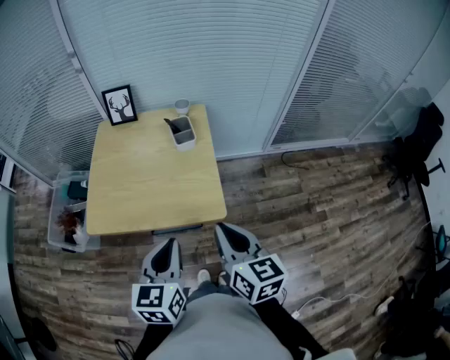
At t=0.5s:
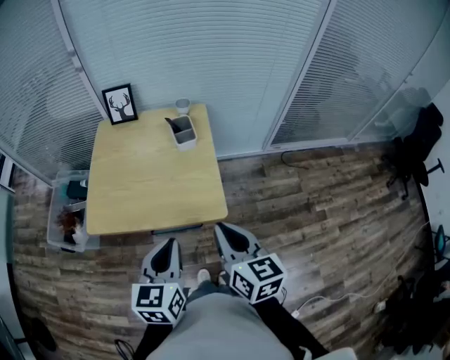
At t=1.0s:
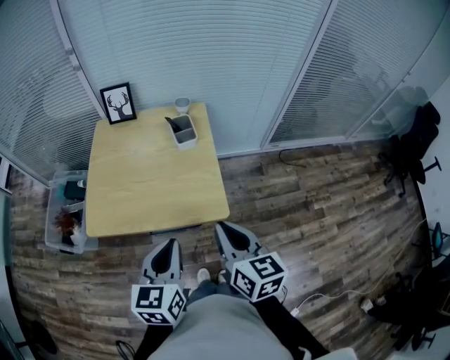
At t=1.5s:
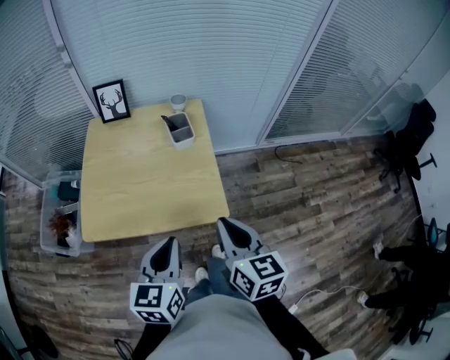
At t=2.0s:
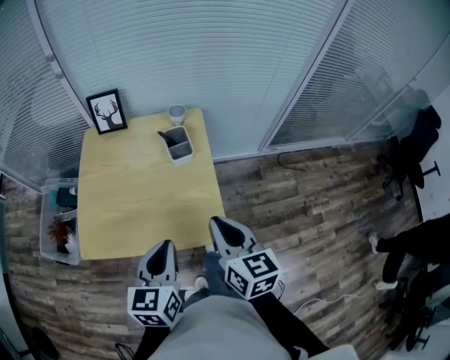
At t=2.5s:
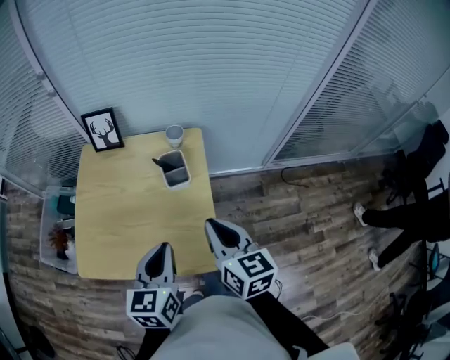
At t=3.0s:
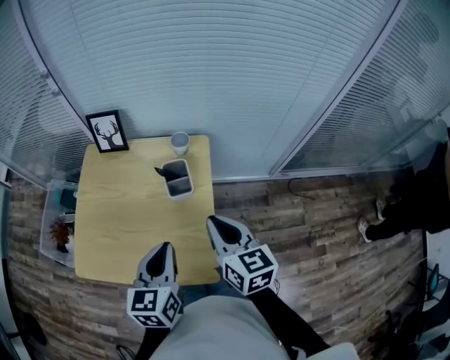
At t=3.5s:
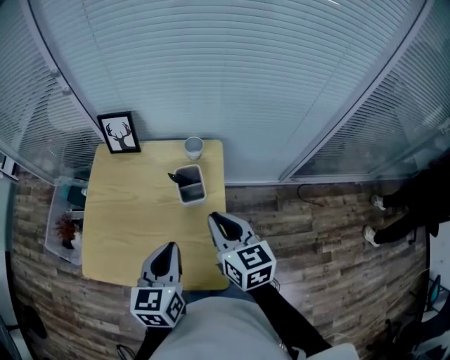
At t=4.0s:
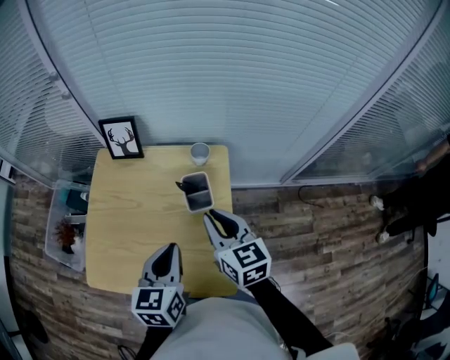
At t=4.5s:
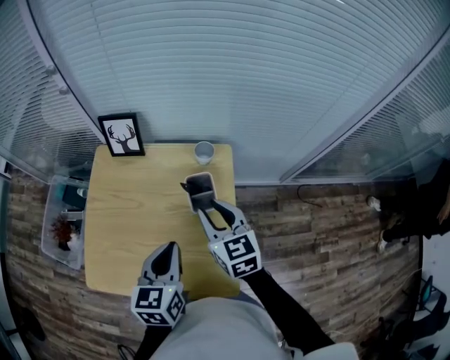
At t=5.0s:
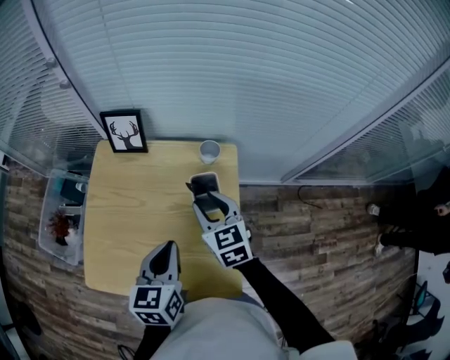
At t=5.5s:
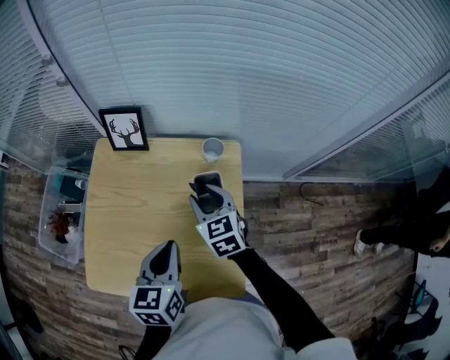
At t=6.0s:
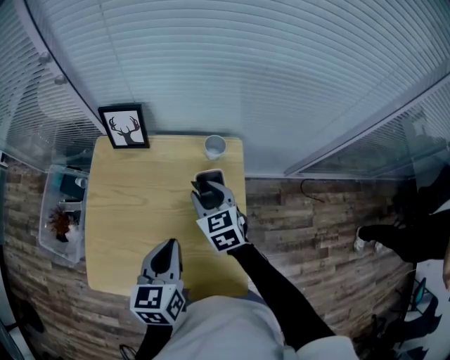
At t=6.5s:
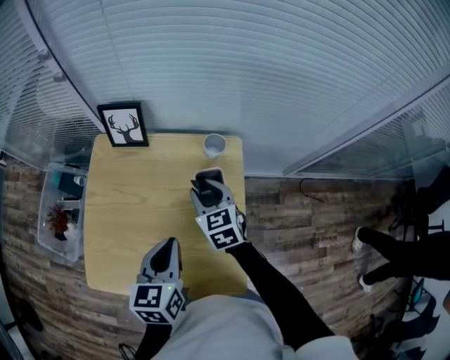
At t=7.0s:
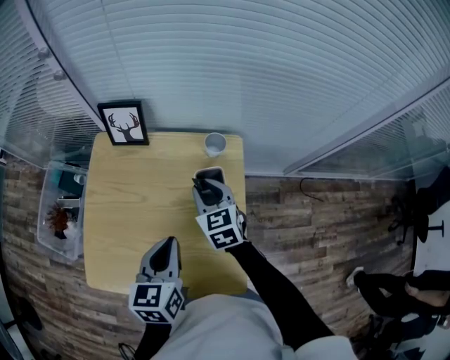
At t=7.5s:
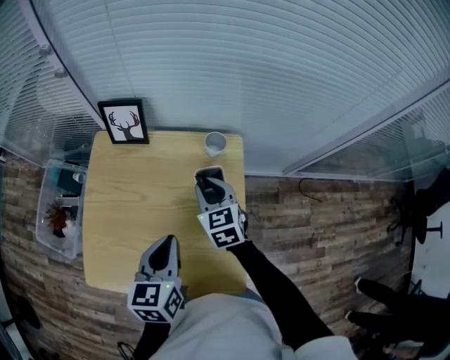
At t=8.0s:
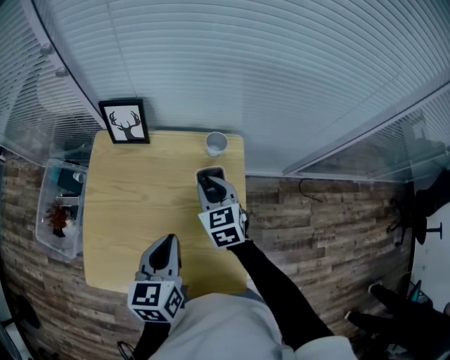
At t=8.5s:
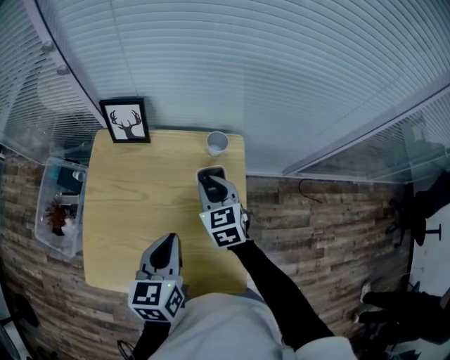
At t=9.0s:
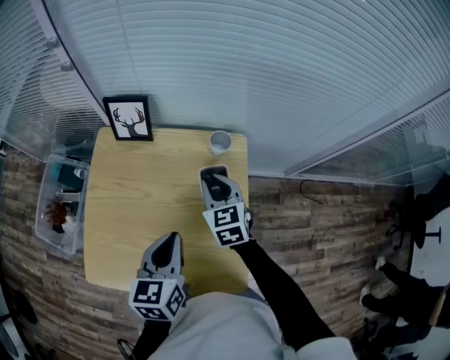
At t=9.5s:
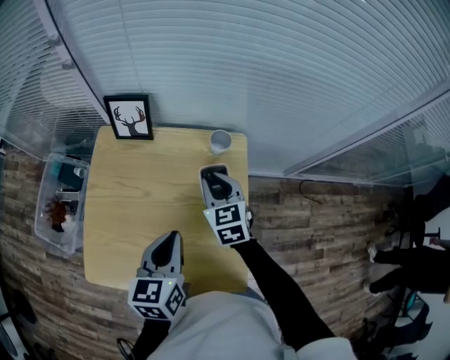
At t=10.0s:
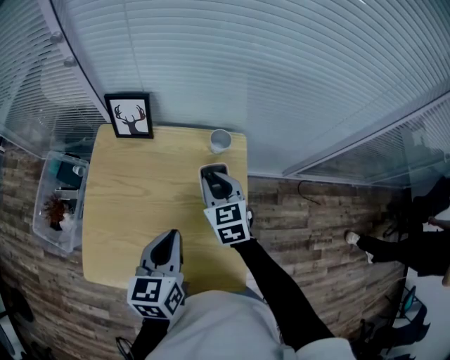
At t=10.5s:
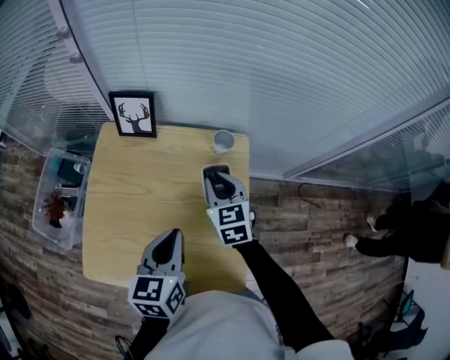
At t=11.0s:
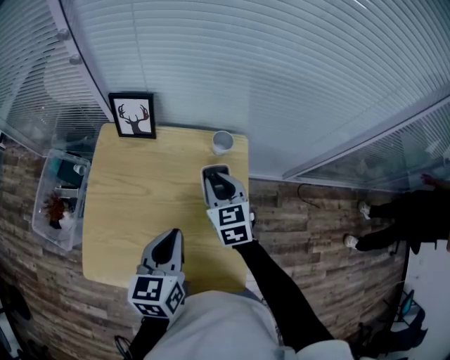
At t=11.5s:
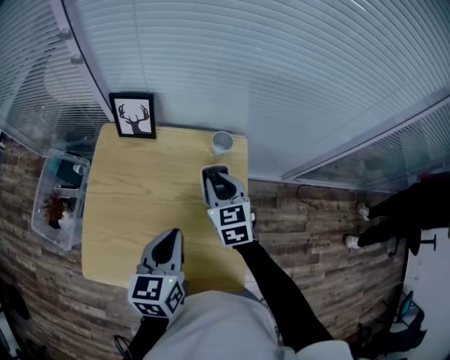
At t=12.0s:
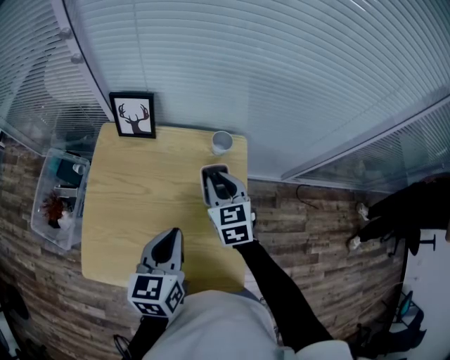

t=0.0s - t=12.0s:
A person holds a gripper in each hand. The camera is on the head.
t=0.0s - t=2.0s: The grippers both shift forward by about 10 cm.
t=2.0s - t=4.0s: The grippers both shift forward by roughly 20 cm.
t=4.0s - t=6.0s: The right gripper shifts about 15 cm forward, downward and to the left, changes its angle by some 20 degrees, and opens its fingers; the left gripper moves forward, approximately 5 cm.
t=6.0s - t=8.0s: The grippers stay close to where they were, moving slightly.
t=8.0s - t=10.0s: Both grippers stay about where they are.
t=10.0s - t=12.0s: Both grippers stay about where they are.

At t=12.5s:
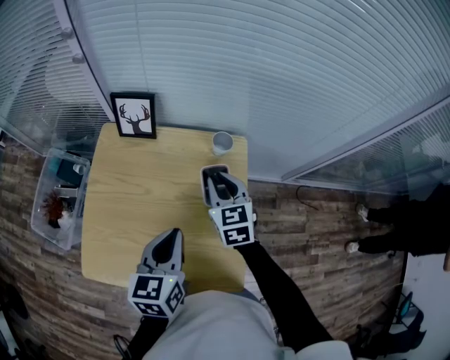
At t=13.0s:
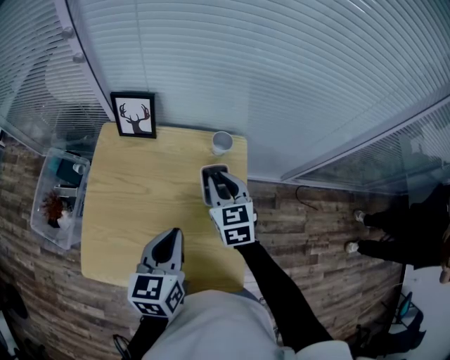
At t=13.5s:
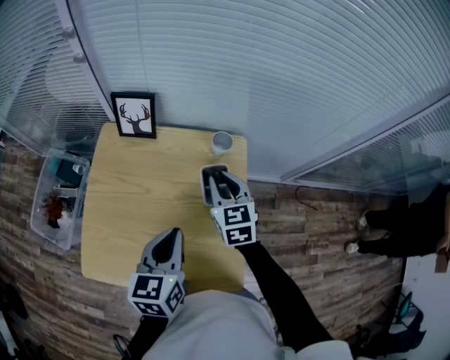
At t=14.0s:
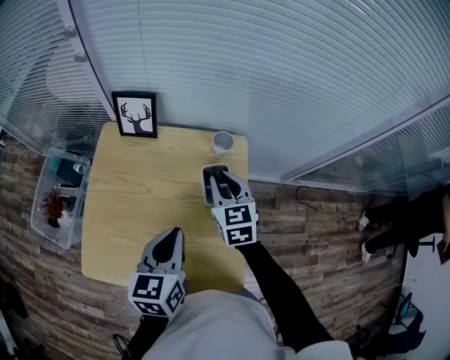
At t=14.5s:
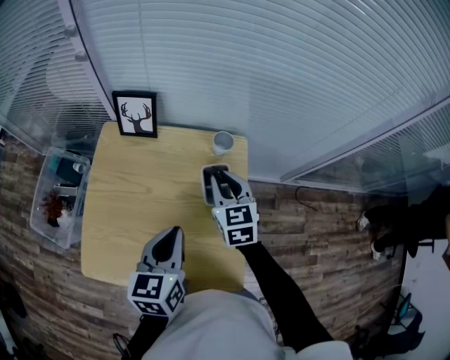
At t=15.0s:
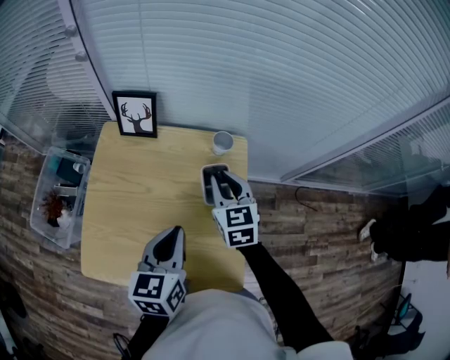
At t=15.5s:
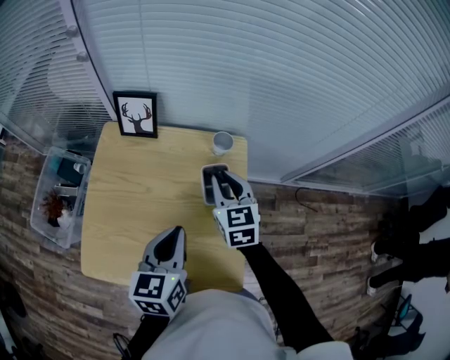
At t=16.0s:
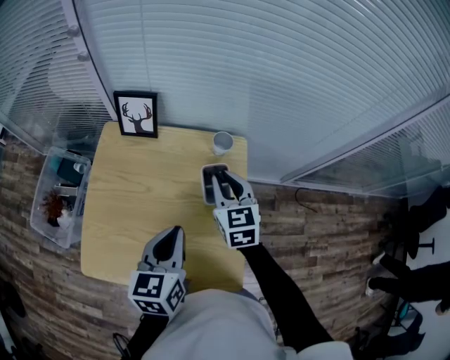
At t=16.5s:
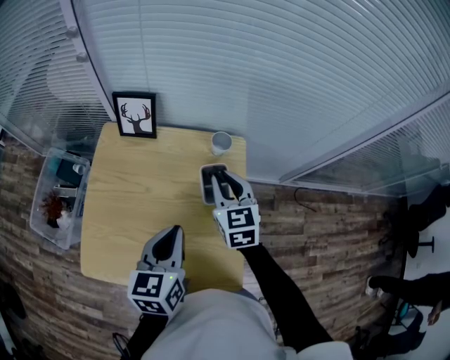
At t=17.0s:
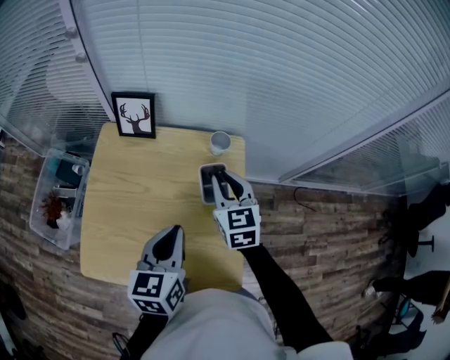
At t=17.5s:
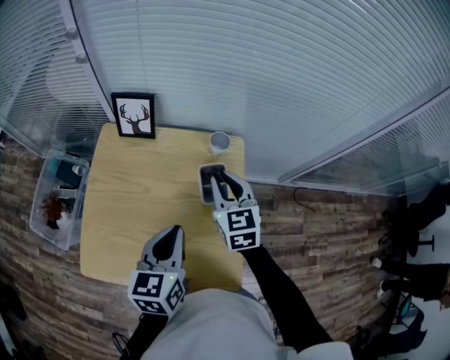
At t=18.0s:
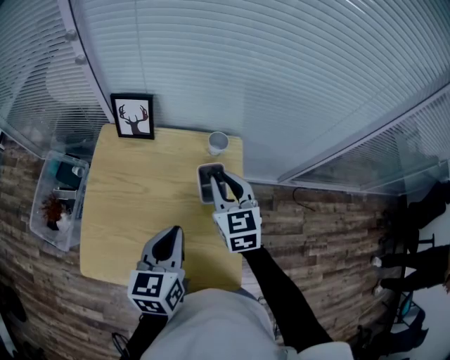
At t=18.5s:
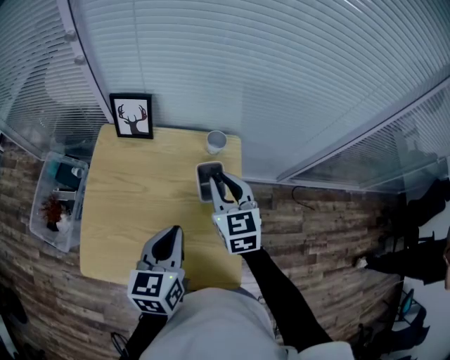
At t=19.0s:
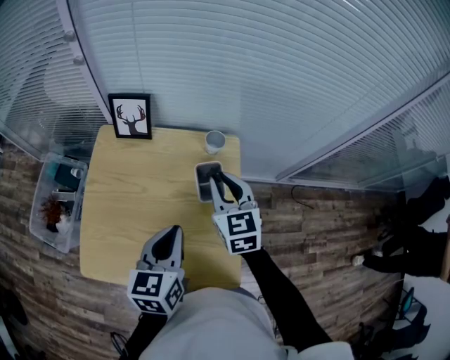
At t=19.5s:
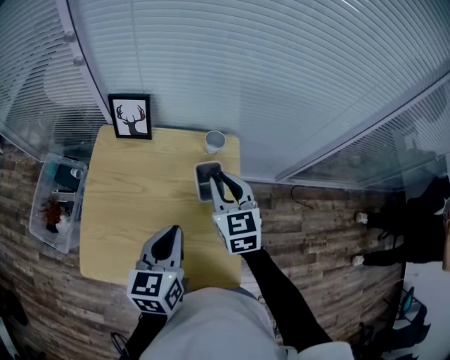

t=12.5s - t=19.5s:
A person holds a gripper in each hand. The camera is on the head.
t=12.5s - t=14.5s: The two grippers keep their place.
t=14.5s - t=16.0s: Neither gripper changes place.
t=16.0s - t=19.5s: There are only small adjustments of the grippers.

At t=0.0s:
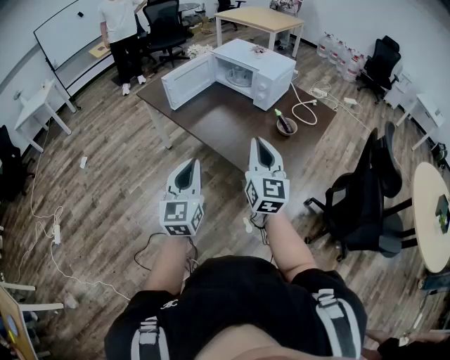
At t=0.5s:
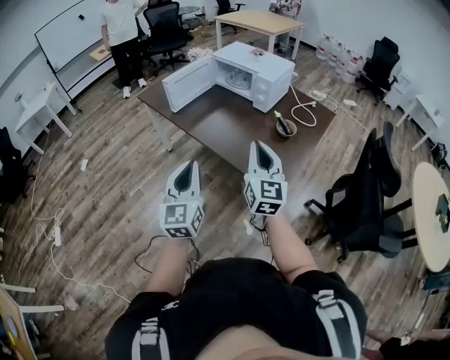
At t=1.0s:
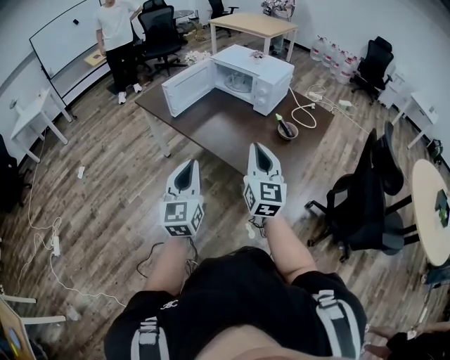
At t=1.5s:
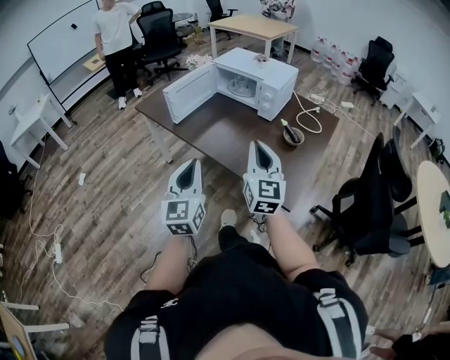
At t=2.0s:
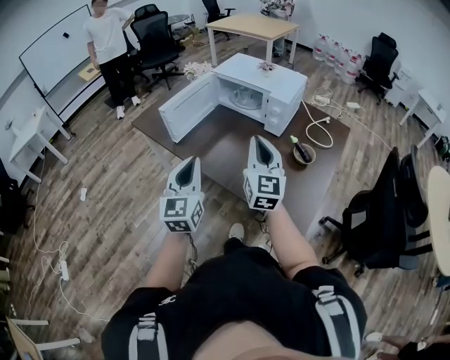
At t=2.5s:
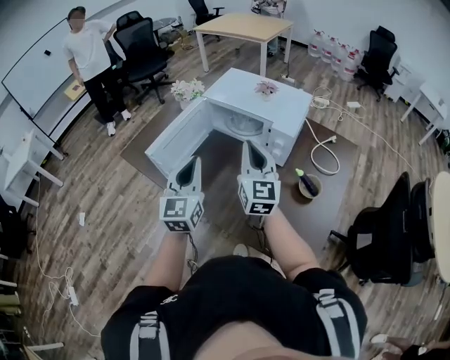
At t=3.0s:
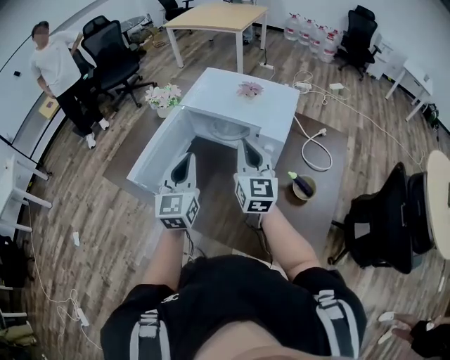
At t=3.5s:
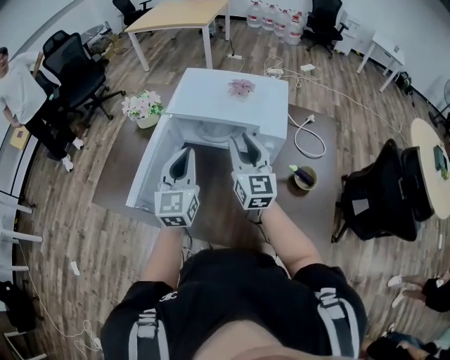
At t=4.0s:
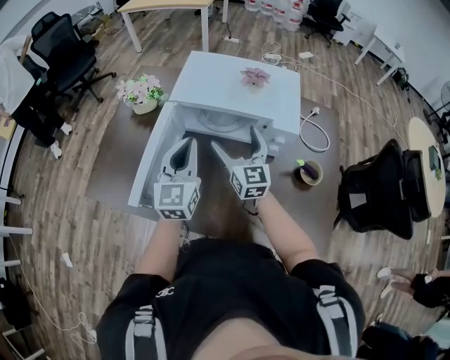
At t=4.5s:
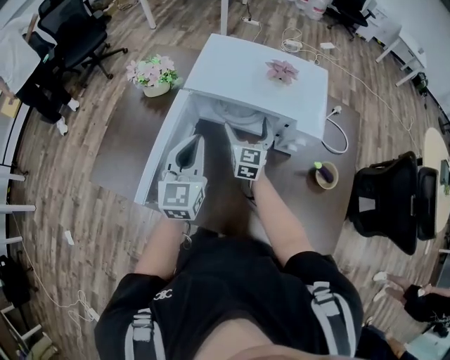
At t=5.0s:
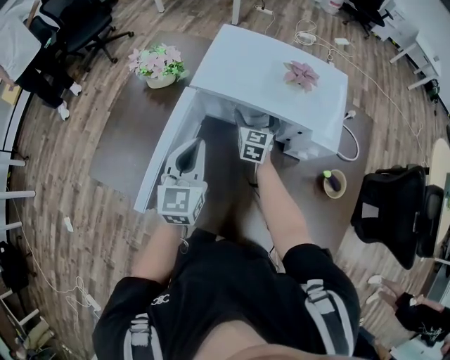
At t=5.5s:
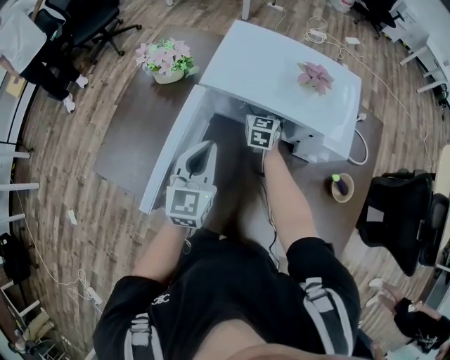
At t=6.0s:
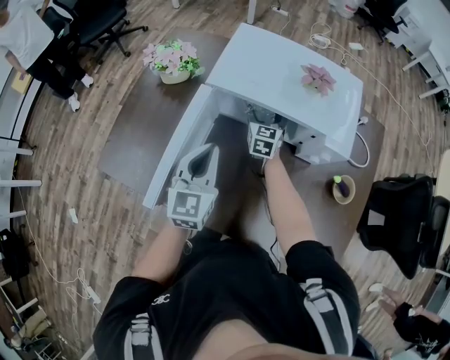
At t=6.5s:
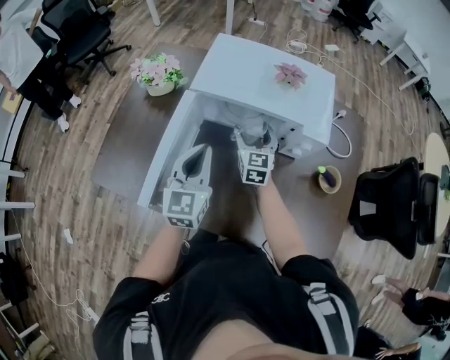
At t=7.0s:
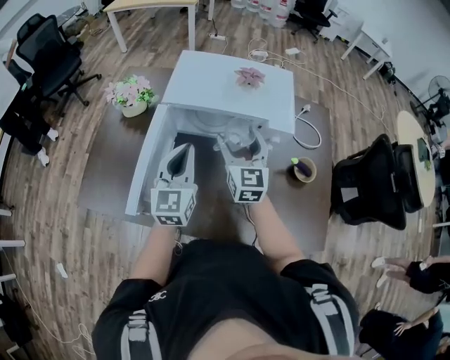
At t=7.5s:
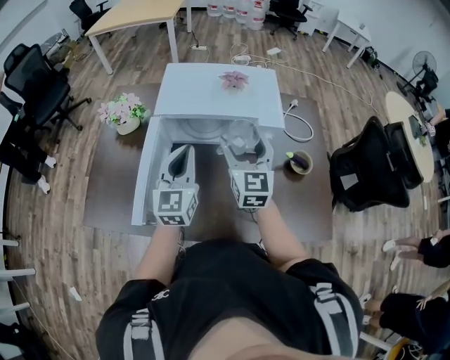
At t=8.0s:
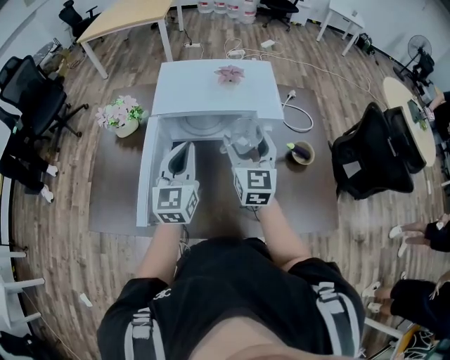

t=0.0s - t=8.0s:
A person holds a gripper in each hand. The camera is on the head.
t=0.0s - t=2.0s: The grippers both shift forward by roughly 25 cm.
t=2.0s - t=4.0s: The two grippers travel together, forward, approximately 40 cm. The right gripper opens its fingers. The left gripper changes its angle by some 30 degrees.
t=4.0s - t=6.0s: The left gripper moves downward, approximately 10 cm, while the right gripper heads forward and downward, covering roughly 25 cm, and changes its angle by about 20 degrees.
t=6.0s - t=8.0s: The right gripper travels backward, upward and to the right by approximately 30 cm. Meanwhile the left gripper heads upward and to the right, covering roughly 10 cm.
